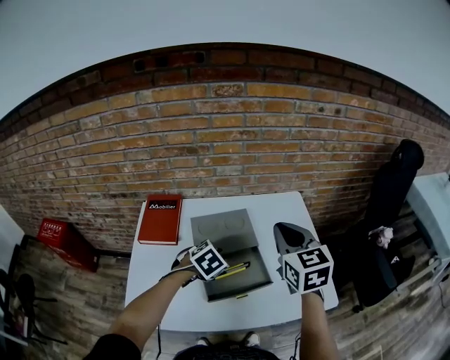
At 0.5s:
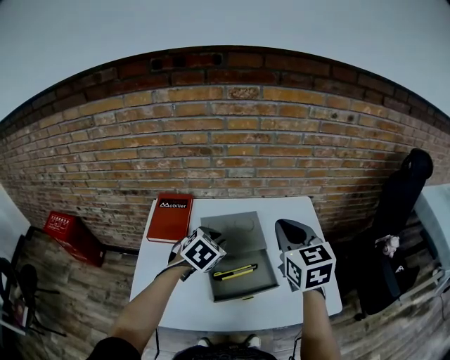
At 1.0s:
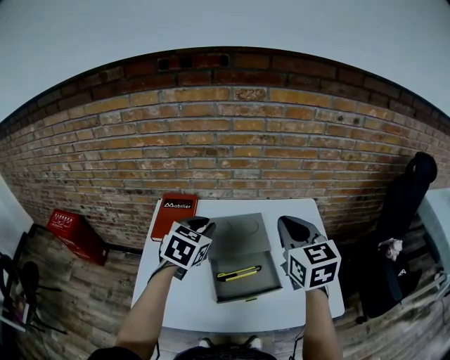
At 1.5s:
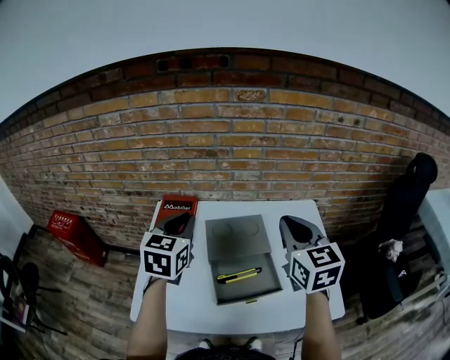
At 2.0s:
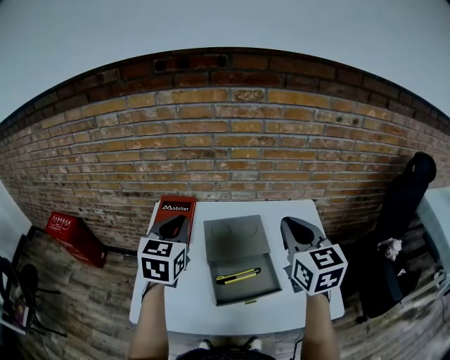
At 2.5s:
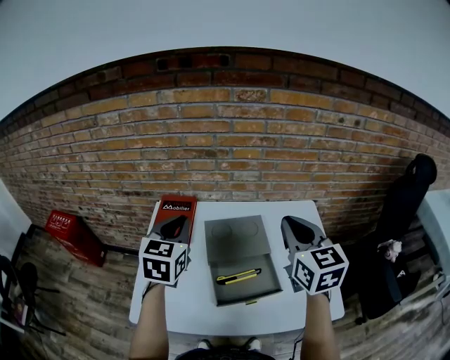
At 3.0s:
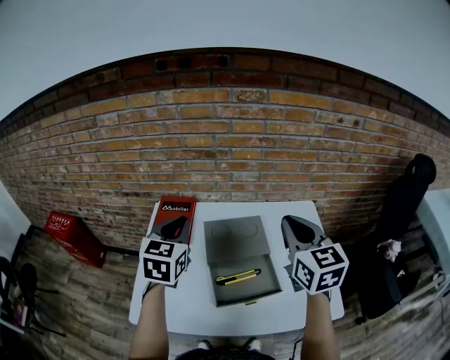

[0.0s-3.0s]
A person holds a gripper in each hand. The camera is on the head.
0.0s to 1.5s: The left gripper heads upward and to the left, covering about 25 cm, and tips its fingers upward by approximately 40 degrees, while the right gripper shifts by approximately 5 cm.
1.5s to 3.0s: There are only small adjustments of the grippers.

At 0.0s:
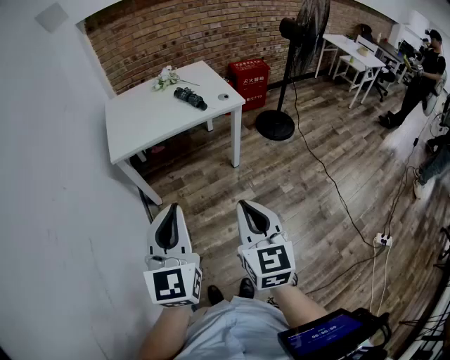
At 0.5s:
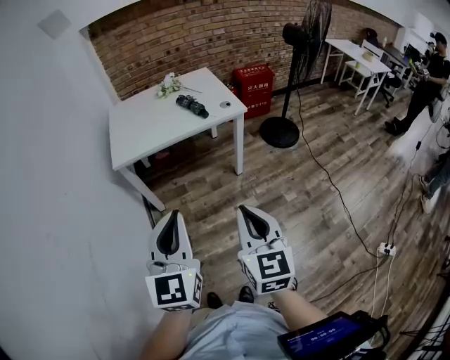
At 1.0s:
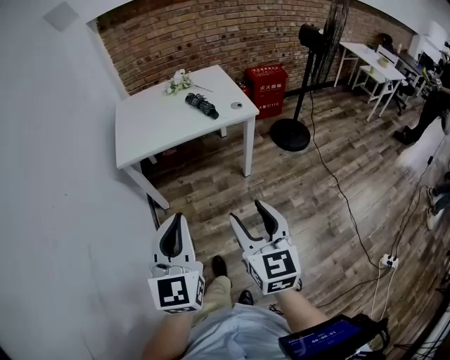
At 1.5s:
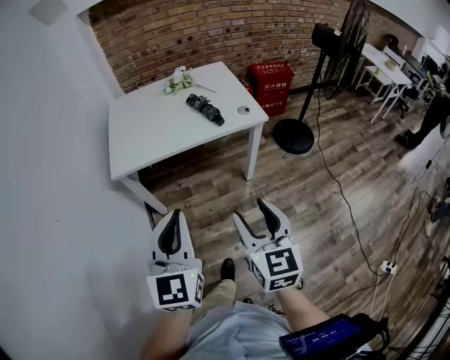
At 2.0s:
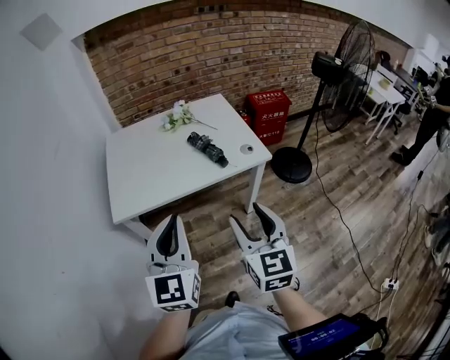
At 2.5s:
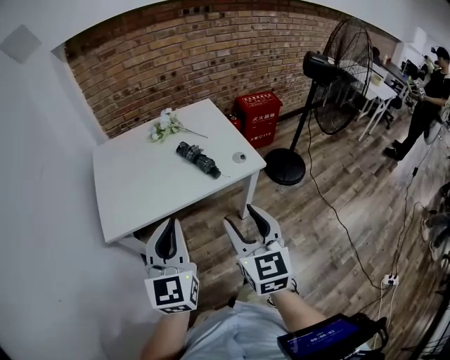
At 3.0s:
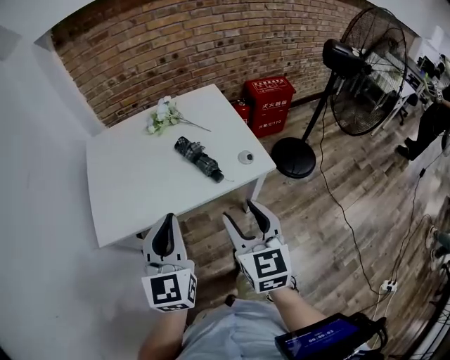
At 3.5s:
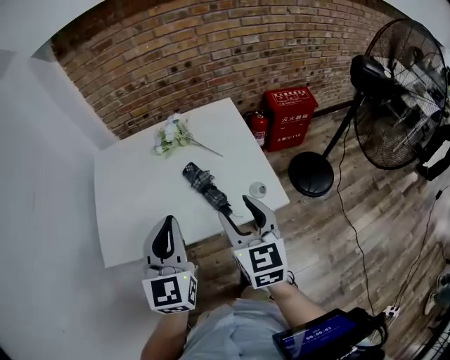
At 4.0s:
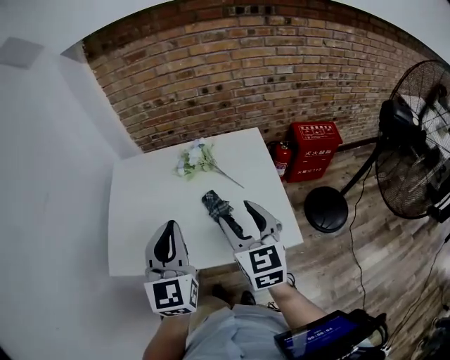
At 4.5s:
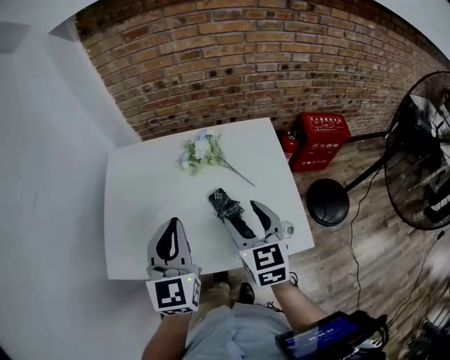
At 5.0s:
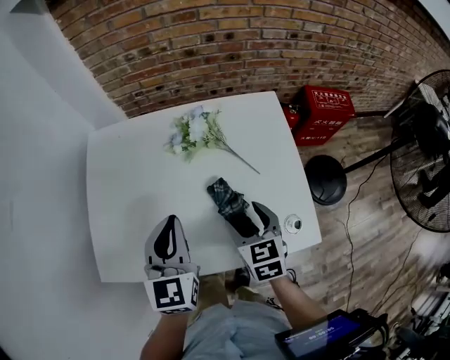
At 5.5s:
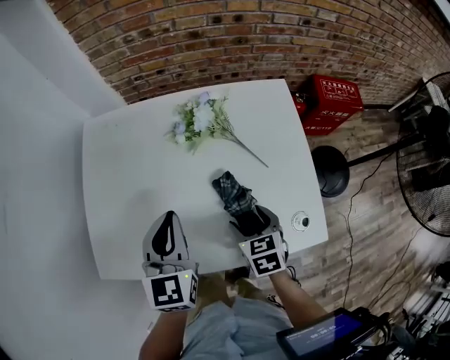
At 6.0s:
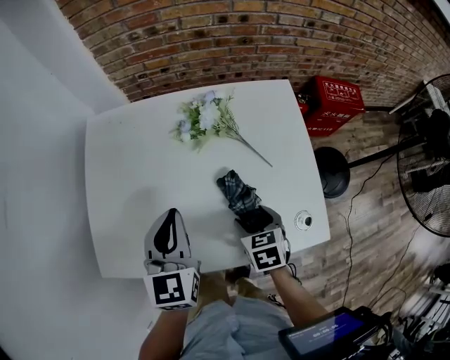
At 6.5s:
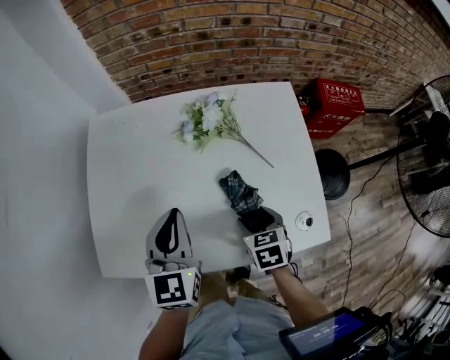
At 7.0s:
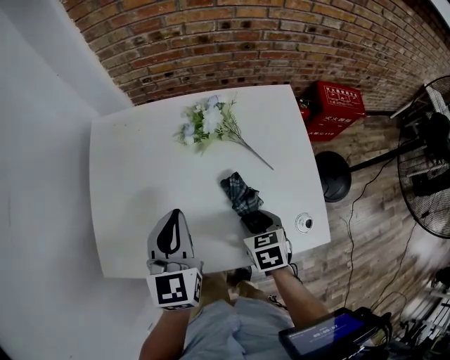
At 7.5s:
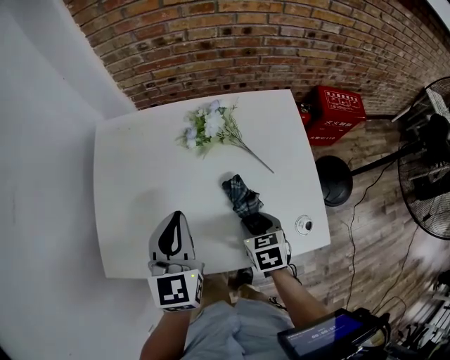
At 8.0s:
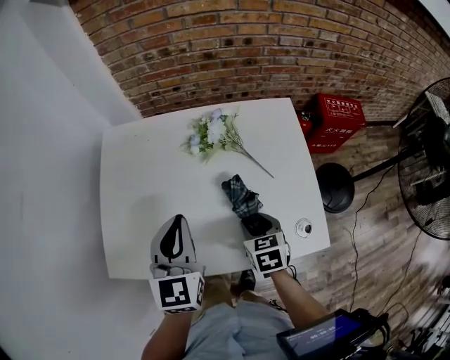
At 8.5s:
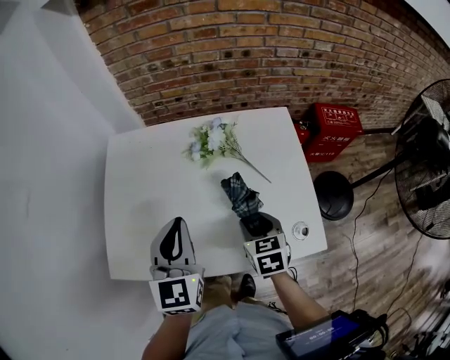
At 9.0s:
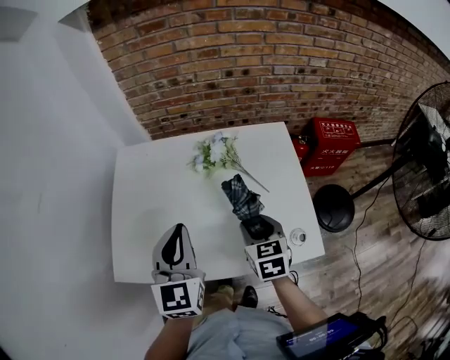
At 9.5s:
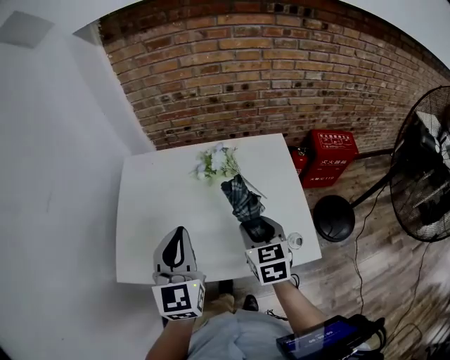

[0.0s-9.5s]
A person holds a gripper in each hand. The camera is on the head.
0.0s to 2.0s: The two grippers go some 30 cm forward. The right gripper opens its fingers.
2.0s to 4.0s: Both grippers travel together forward, about 35 cm.
4.0s to 5.5s: The left gripper moves downward and forward, about 20 cm. The right gripper goes about 25 cm downward, and points its fingers approximately 40 degrees further downward.
5.5s to 7.5s: The right gripper closes up.
7.5s to 9.5s: The left gripper shifts some 10 cm upward and backward, while the right gripper goes roughly 15 cm upward, and swivels approximately 20 degrees.

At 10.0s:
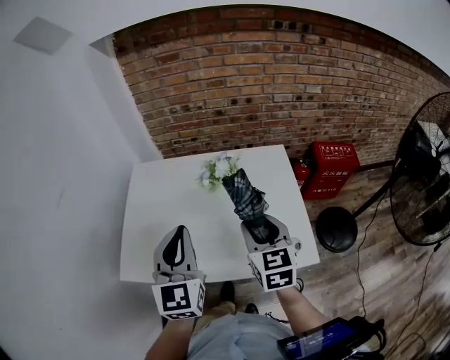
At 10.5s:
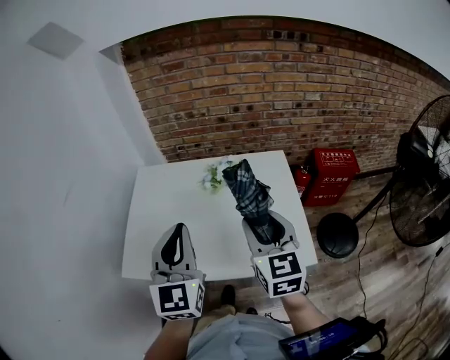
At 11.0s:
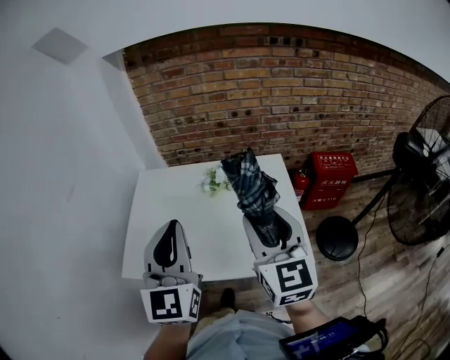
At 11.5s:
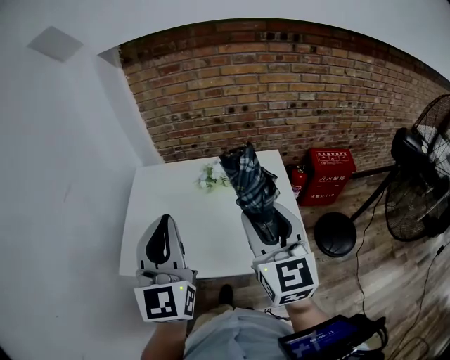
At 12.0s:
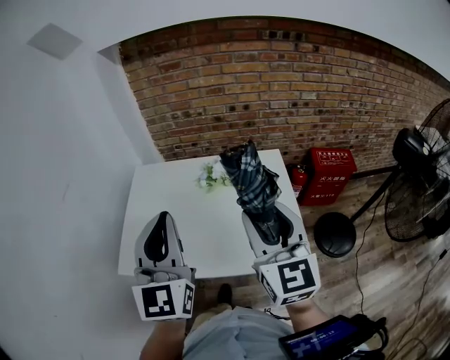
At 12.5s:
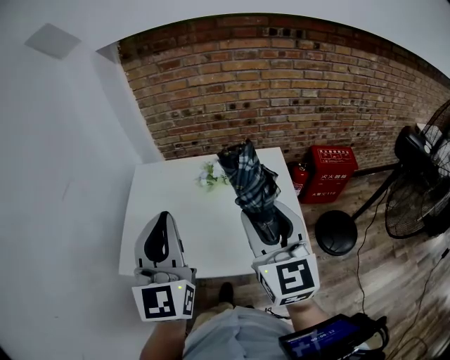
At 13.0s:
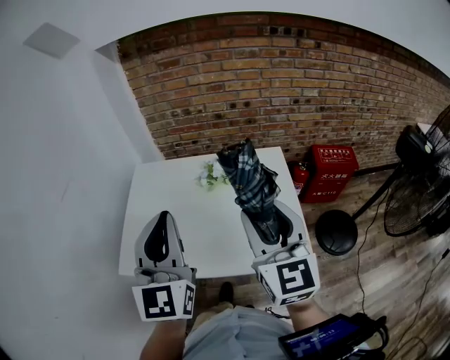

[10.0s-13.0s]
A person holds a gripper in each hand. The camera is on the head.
10.0s to 11.5s: The right gripper goes about 15 cm upward and backward, and changes its angle by roughly 20 degrees, while the left gripper goes some 10 cm upward.
11.5s to 13.0s: Neither gripper changes place.

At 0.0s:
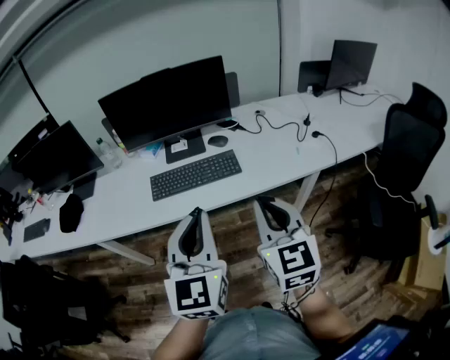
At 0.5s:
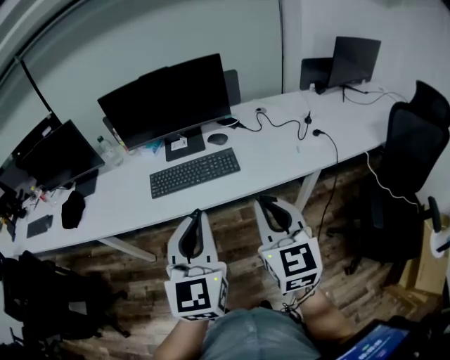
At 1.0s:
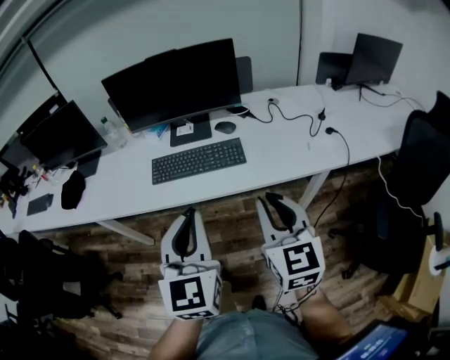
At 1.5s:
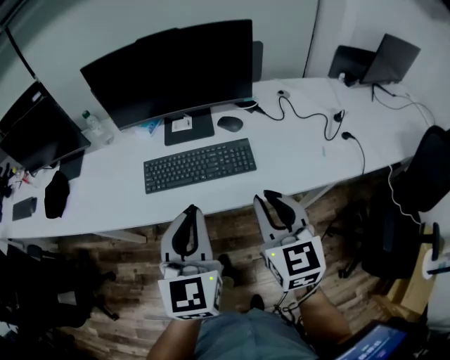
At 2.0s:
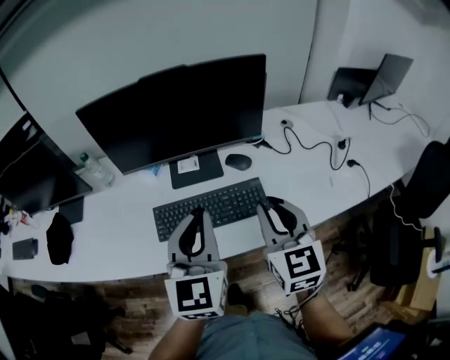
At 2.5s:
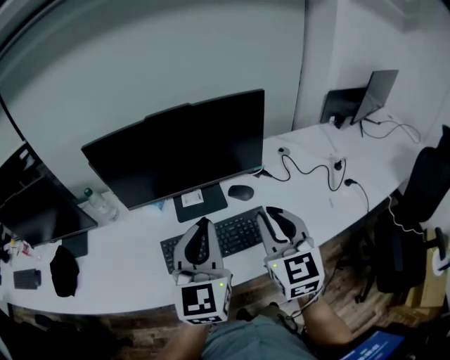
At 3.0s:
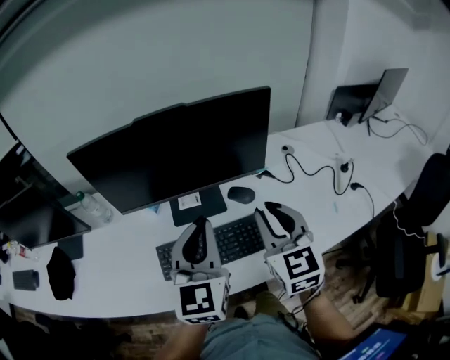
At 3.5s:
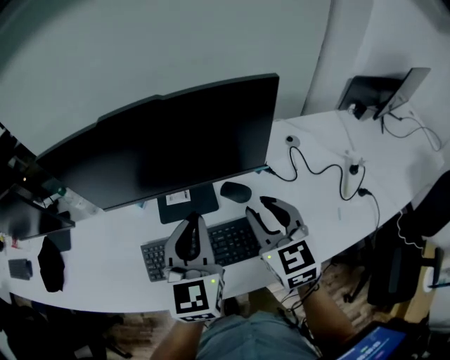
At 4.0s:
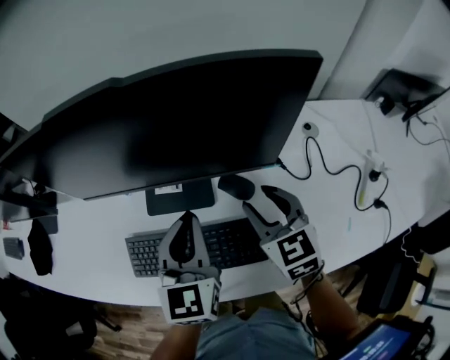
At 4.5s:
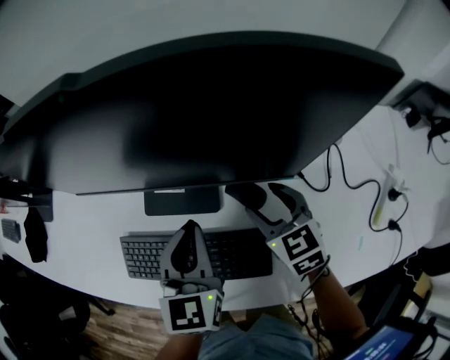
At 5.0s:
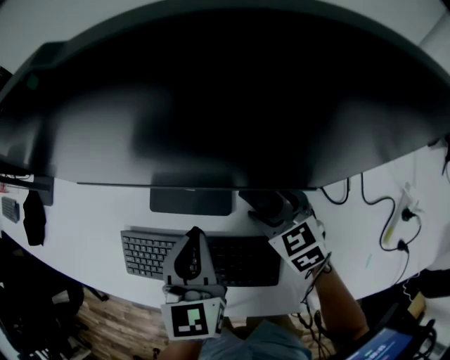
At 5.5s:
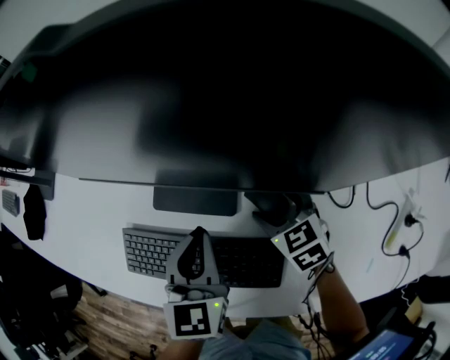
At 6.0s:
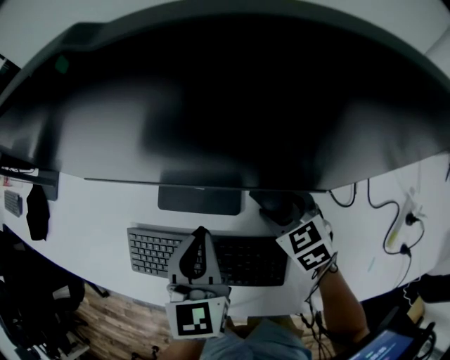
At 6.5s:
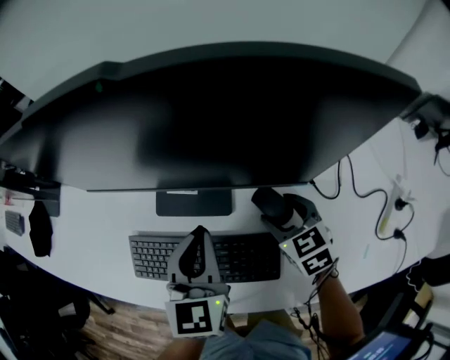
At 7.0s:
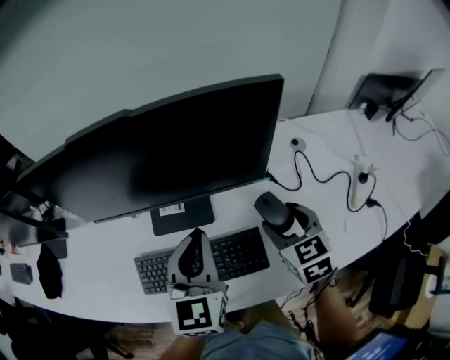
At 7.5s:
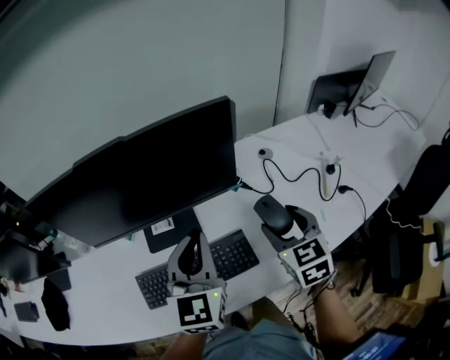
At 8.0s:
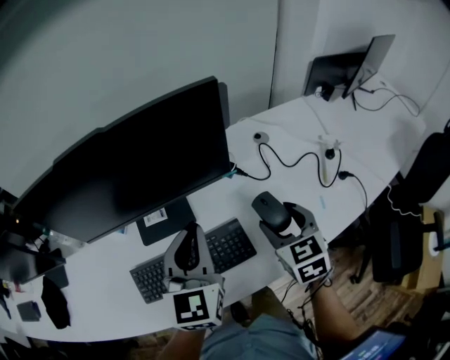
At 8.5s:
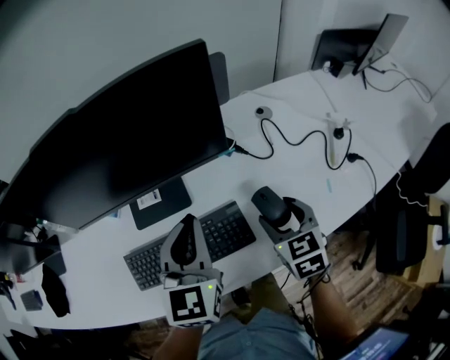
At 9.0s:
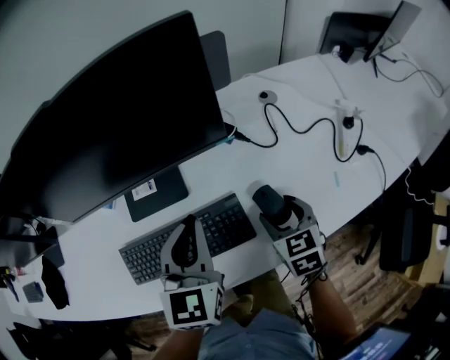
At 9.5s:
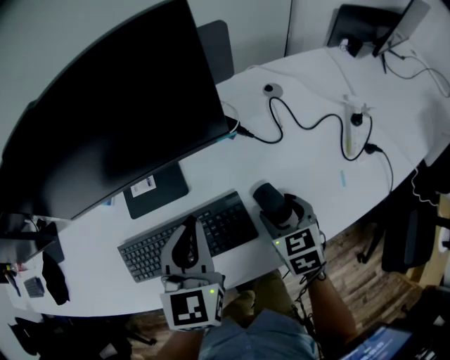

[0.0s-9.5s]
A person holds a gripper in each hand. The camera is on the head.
0.0s to 2.0s: The two grippers go approximately 25 cm forward.
2.0s to 4.0s: Both grippers travel together forward and downward, about 25 cm. The right gripper swivels about 20 degrees.
4.0s to 5.5s: The left gripper heads downward, covering some 10 cm. The right gripper moves downward, roughly 15 cm, swivels some 30 degrees, and opens.
5.5s to 7.5s: The two grippers go approximately 15 cm upward. The right gripper swivels approximately 40 degrees; the left gripper rotates approximately 30 degrees.
7.5s to 9.5s: The left gripper is displaced downward by roughly 10 cm; the right gripper heads downward, covering some 15 cm.

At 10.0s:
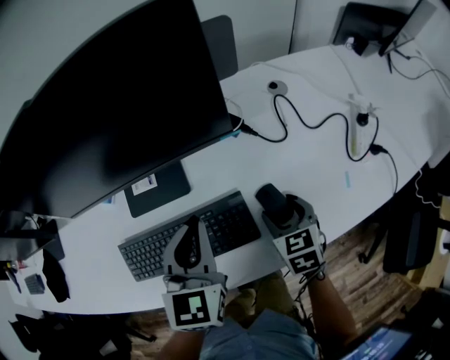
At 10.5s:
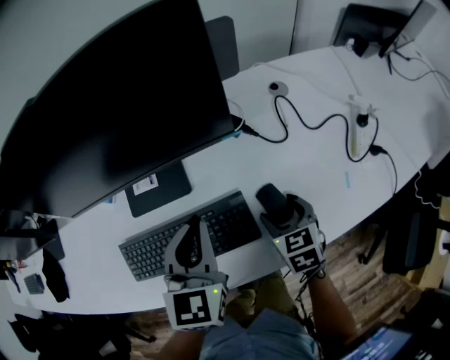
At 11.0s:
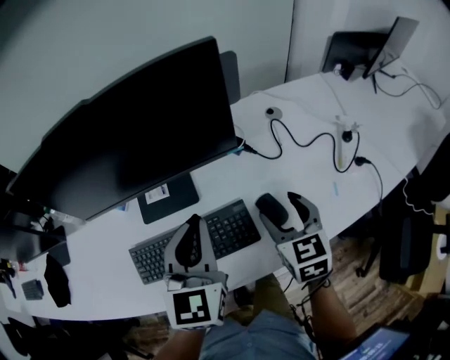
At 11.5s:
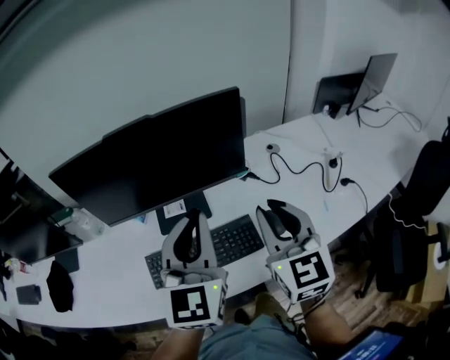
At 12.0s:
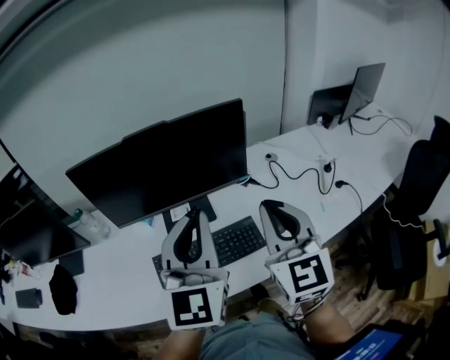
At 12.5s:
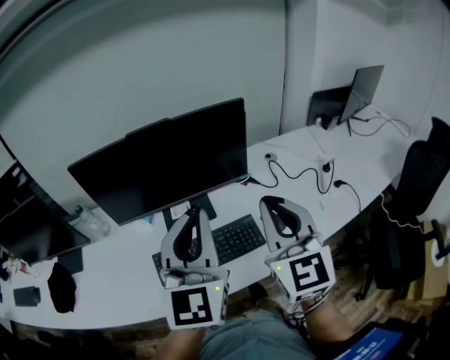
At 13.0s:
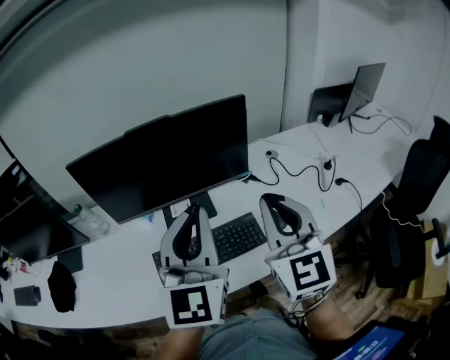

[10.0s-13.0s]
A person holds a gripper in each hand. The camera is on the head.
10.0s to 11.5s: The left gripper travels upward by about 20 cm, and swivels about 20 degrees. Meanwhile the right gripper is displaced upward by roughly 30 cm, angles its fingers upward, by approximately 40 degrees, and closes its fingers.
11.5s to 13.0s: The right gripper shifts about 5 cm upward, while the left gripper changes place by about 5 cm.
